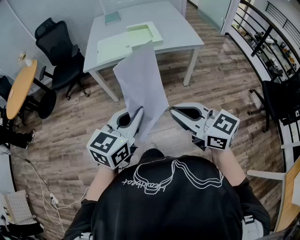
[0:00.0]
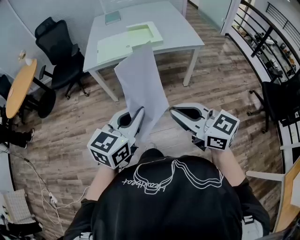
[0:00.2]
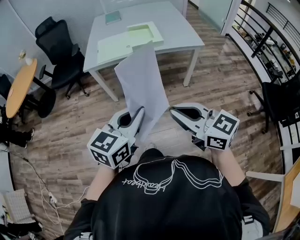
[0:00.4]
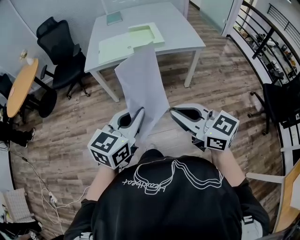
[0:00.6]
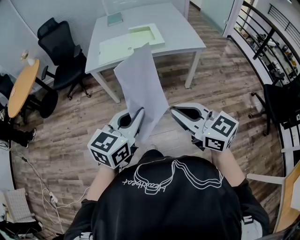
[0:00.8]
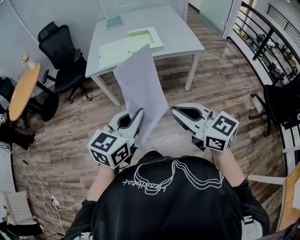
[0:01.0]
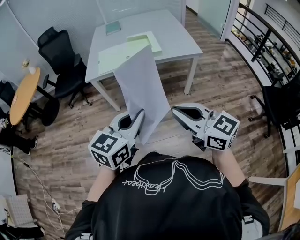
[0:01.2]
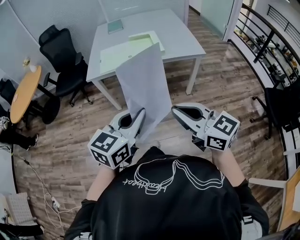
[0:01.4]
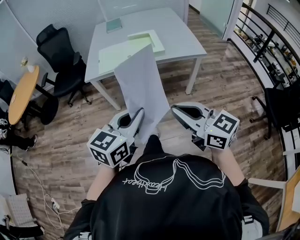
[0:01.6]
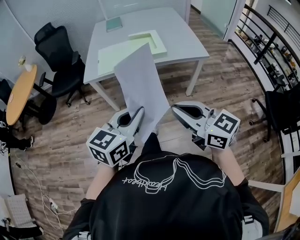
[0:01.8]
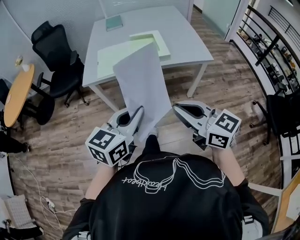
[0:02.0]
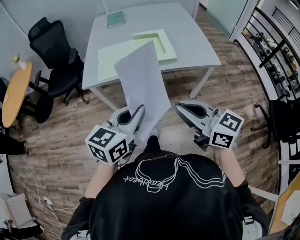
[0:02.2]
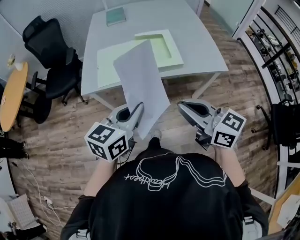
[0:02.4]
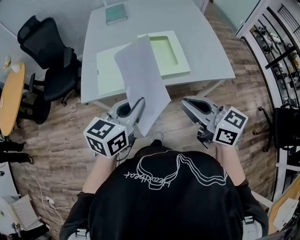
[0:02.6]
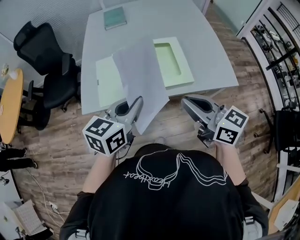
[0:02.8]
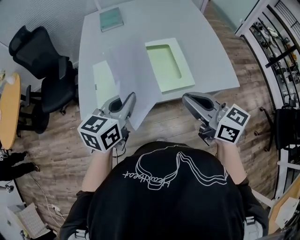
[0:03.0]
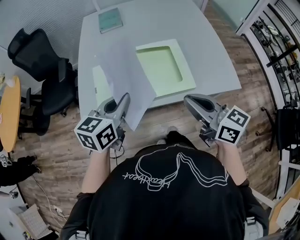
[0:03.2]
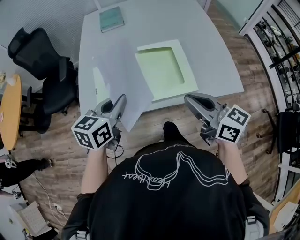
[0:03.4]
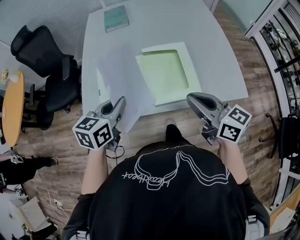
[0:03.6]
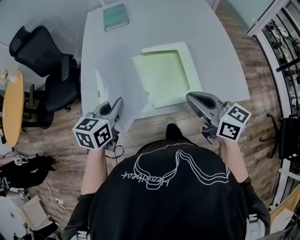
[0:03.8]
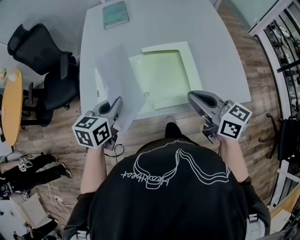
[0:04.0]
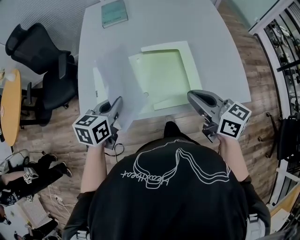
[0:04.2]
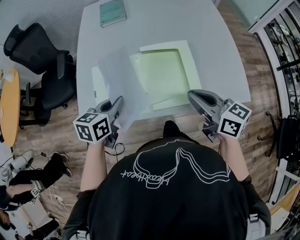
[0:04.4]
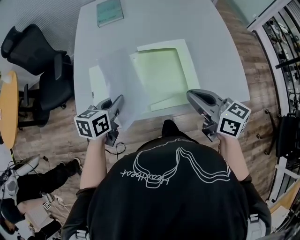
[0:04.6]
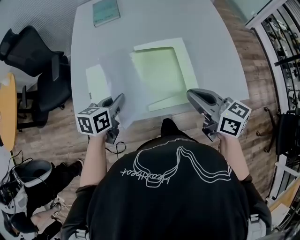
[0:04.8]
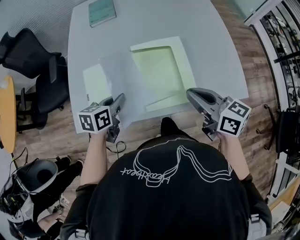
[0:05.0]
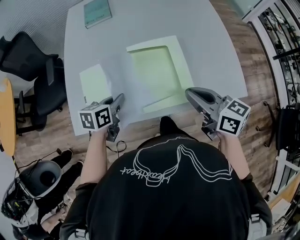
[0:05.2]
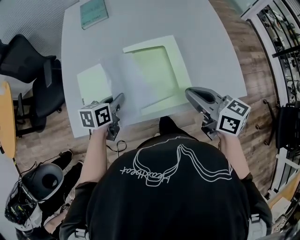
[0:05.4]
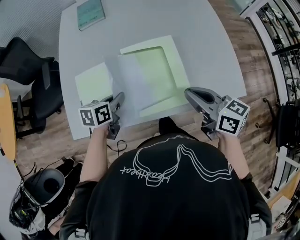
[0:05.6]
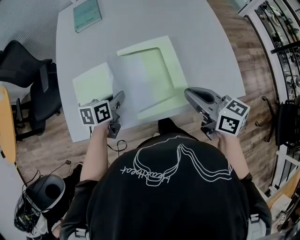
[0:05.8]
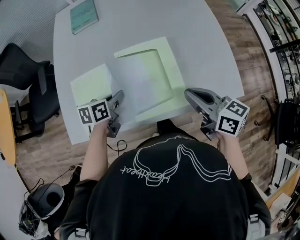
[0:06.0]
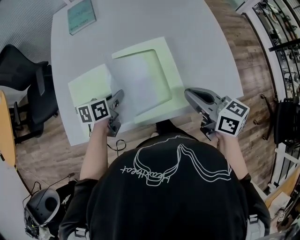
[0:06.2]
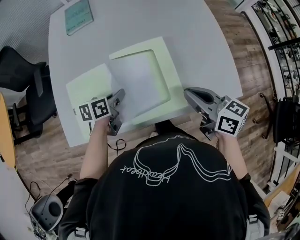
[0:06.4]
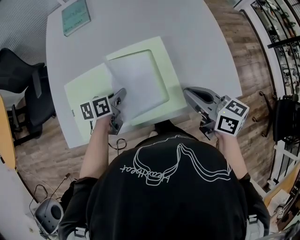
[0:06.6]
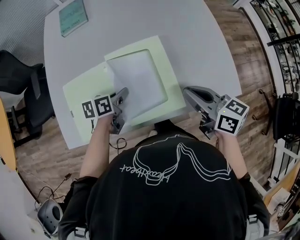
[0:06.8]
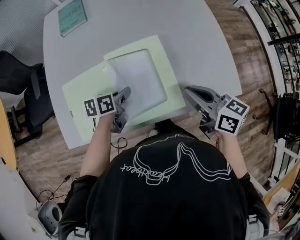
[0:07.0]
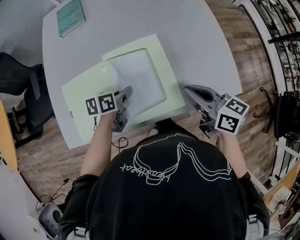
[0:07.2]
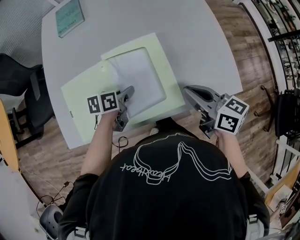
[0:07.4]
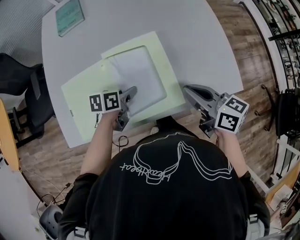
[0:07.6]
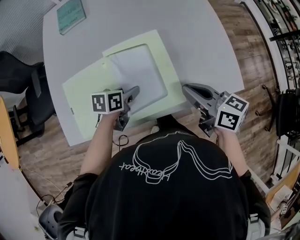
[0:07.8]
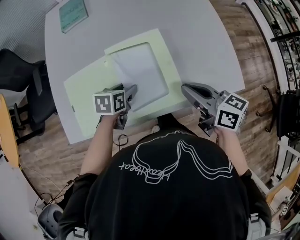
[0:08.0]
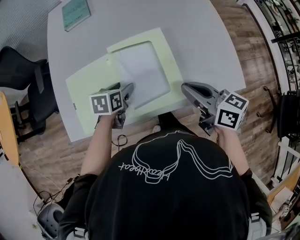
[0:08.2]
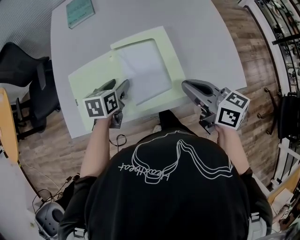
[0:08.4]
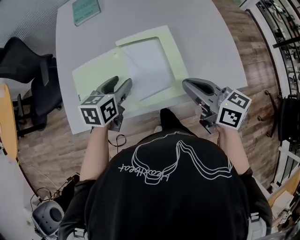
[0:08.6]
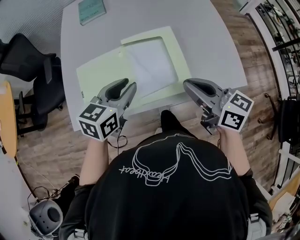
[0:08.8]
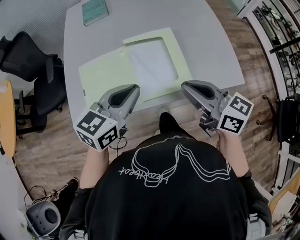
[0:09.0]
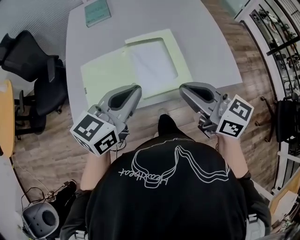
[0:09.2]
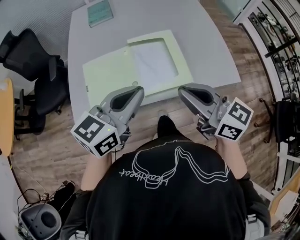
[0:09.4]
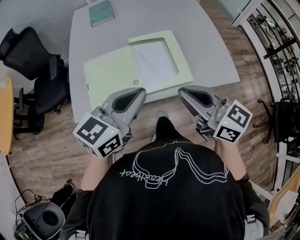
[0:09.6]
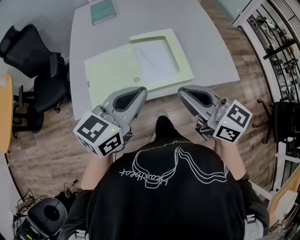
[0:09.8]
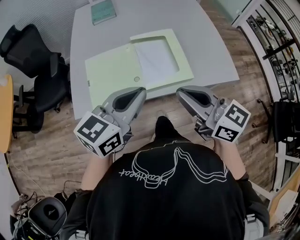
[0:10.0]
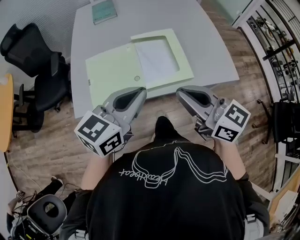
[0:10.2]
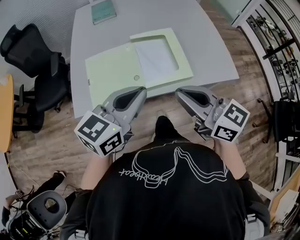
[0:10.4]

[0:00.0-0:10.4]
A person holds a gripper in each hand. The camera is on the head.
0:00.0 to 0:01.4: There are only small adjustments of the grippers.
0:01.4 to 0:03.0: Both grippers are carried forward, some 50 cm.
0:03.0 to 0:04.4: Both grippers travel together forward and downward, some 15 cm.
0:04.4 to 0:06.0: The right gripper shifts roughly 5 cm to the right, while the left gripper heads downward, forward and to the right, covering approximately 15 cm.
0:06.0 to 0:07.4: The left gripper shifts approximately 5 cm to the right.
0:07.4 to 0:09.0: The right gripper moves upward, backward and to the left, about 15 cm, while the left gripper moves upward and backward, approximately 25 cm, turns by approximately 50 degrees, and opens and closes again.
0:09.0 to 0:10.4: The right gripper shifts roughly 10 cm backward and to the left. Meanwhile the left gripper heads backward, covering approximately 10 cm.

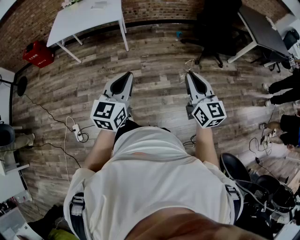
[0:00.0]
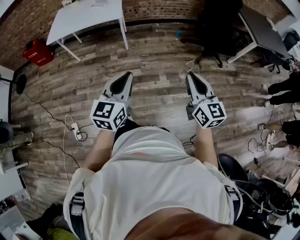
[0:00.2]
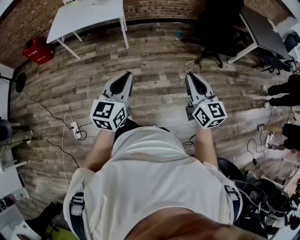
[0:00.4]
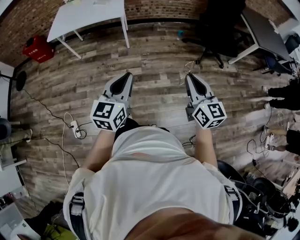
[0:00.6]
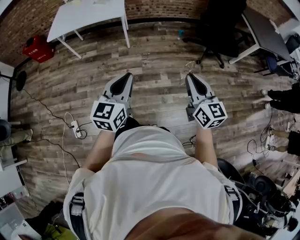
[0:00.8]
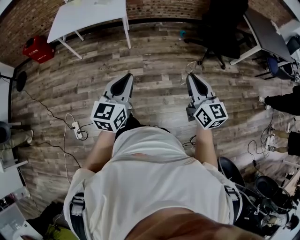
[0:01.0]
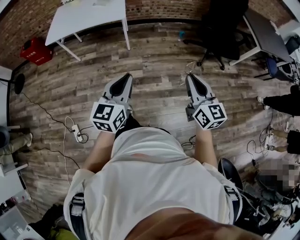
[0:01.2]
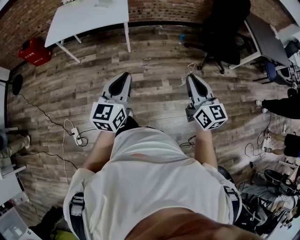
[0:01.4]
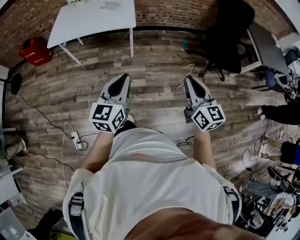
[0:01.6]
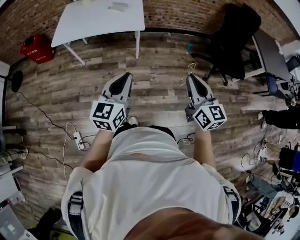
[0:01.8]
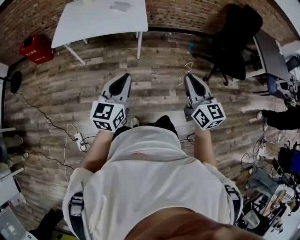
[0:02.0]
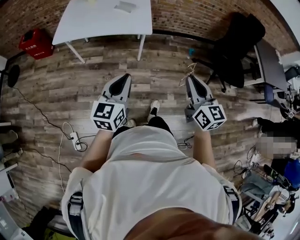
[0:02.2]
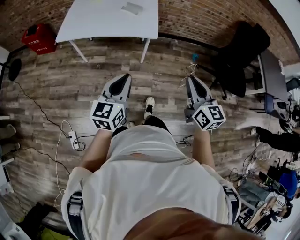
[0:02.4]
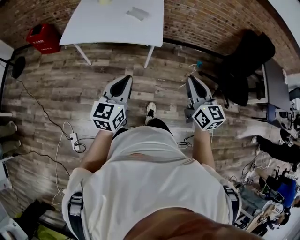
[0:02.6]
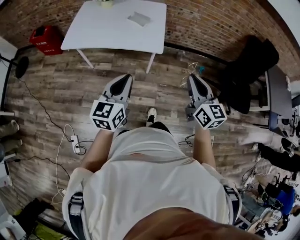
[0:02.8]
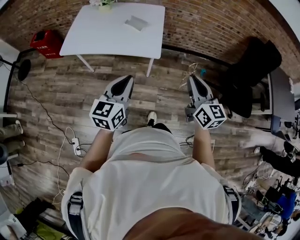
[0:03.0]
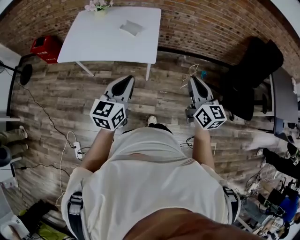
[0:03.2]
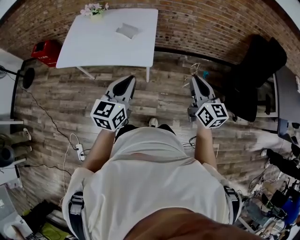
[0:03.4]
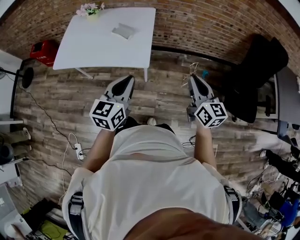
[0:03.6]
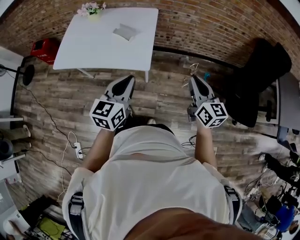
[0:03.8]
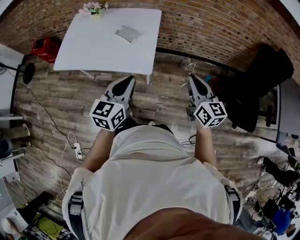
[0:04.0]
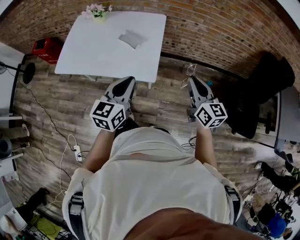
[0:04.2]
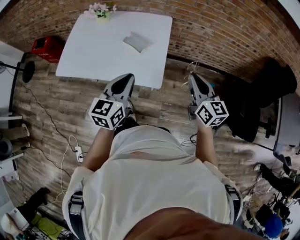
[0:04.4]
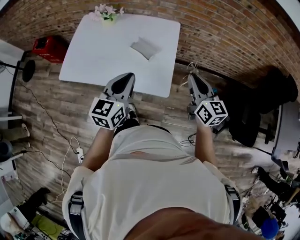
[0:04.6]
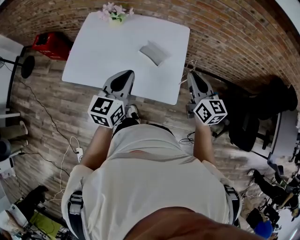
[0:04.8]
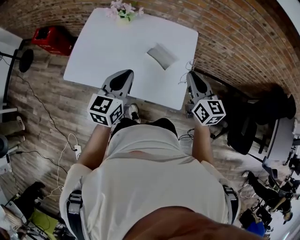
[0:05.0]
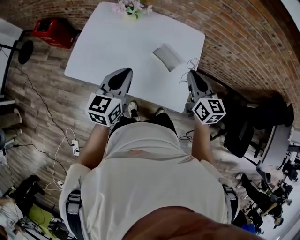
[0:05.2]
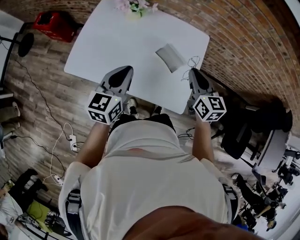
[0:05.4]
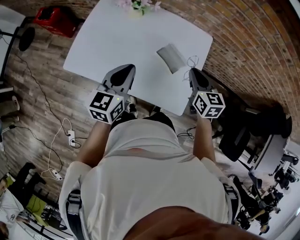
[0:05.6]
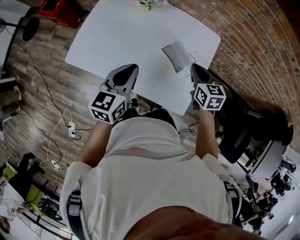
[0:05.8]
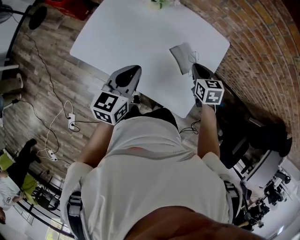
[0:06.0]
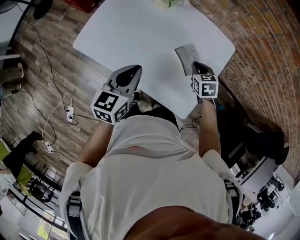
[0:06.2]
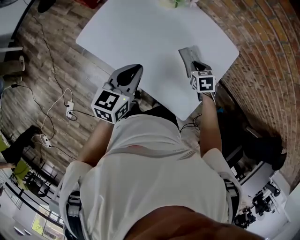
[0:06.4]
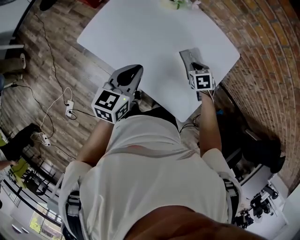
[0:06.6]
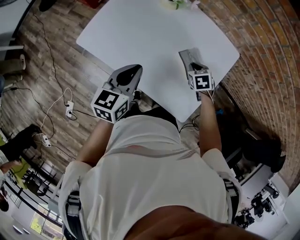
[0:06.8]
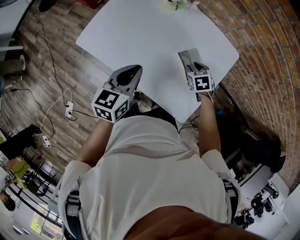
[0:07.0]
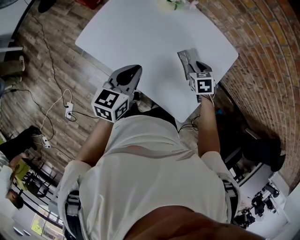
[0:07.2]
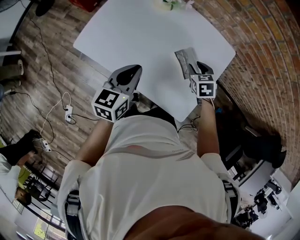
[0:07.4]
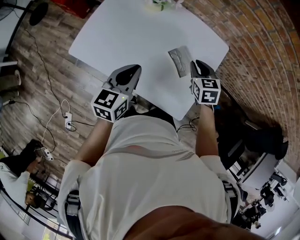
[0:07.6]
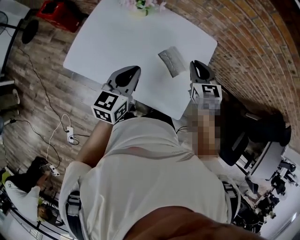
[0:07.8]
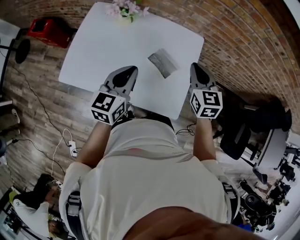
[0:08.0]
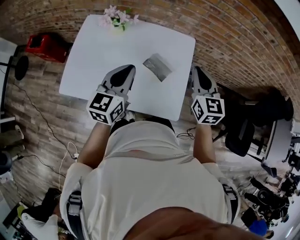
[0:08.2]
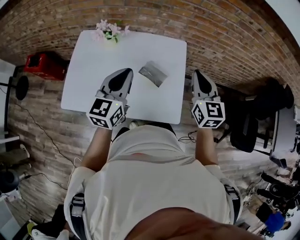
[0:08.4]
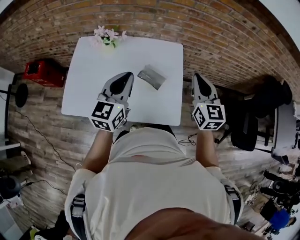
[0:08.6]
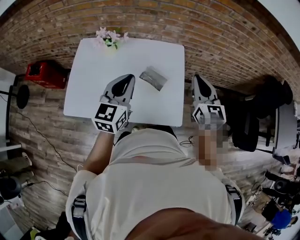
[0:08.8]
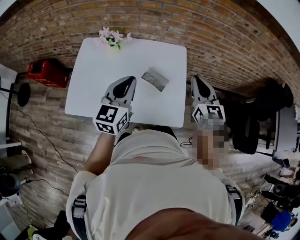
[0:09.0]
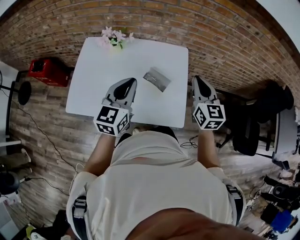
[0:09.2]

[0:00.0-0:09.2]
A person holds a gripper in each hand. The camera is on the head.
0:00.0 to 0:01.6: The two grippers go approximately 20 cm forward and to the left.
0:01.6 to 0:03.0: The two grippers go some 30 cm forward.
0:03.0 to 0:04.6: The grippers both shift forward by some 30 cm.
0:04.6 to 0:06.2: The right gripper moves forward, downward and to the left, about 40 cm, and points its fingers some 40 degrees further downward; the left gripper moves to the left, forward and downward, roughly 25 cm, and turns by roughly 20 degrees.
0:06.2 to 0:07.6: The right gripper shifts about 5 cm upward.
0:07.6 to 0:09.2: The left gripper heads upward and to the right, covering approximately 10 cm, and turns by about 30 degrees. Meanwhile the right gripper shifts some 25 cm upward, to the right and backward, and points its fingers about 30 degrees further upward.

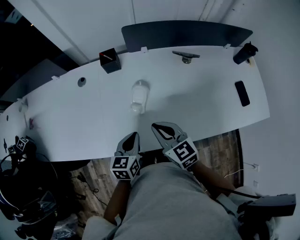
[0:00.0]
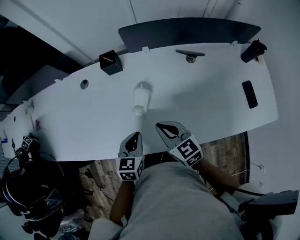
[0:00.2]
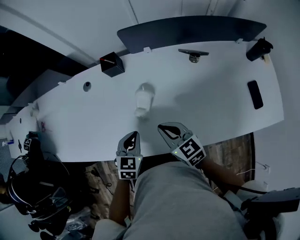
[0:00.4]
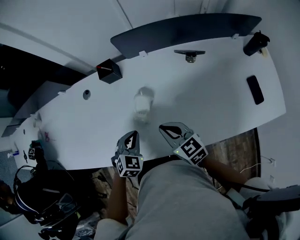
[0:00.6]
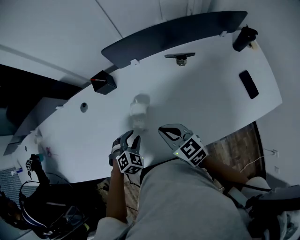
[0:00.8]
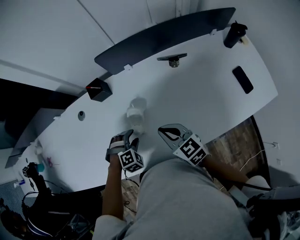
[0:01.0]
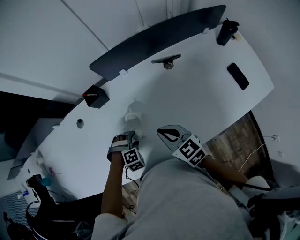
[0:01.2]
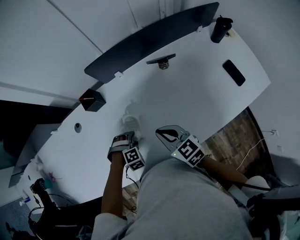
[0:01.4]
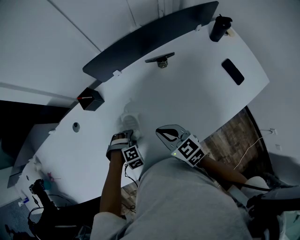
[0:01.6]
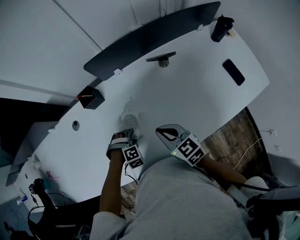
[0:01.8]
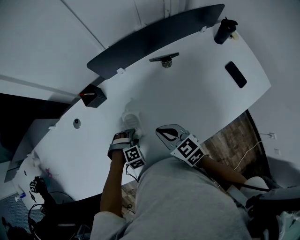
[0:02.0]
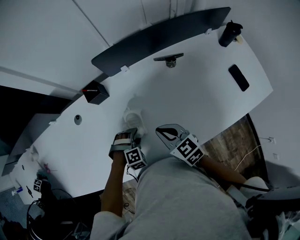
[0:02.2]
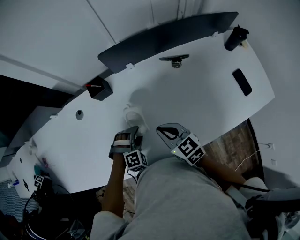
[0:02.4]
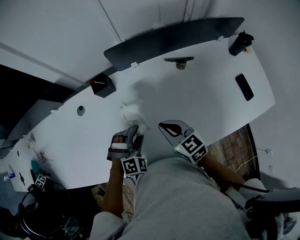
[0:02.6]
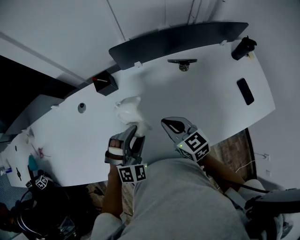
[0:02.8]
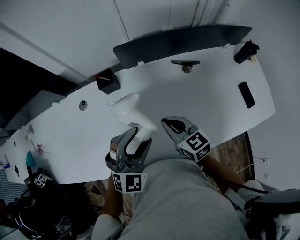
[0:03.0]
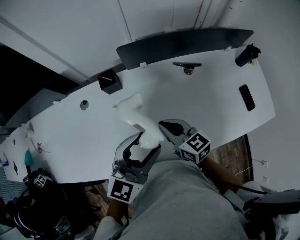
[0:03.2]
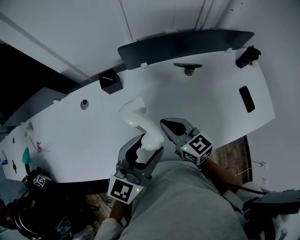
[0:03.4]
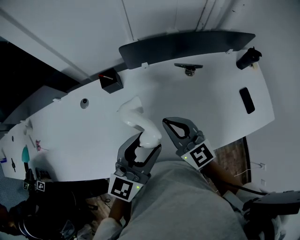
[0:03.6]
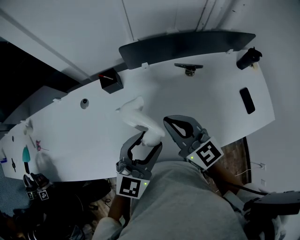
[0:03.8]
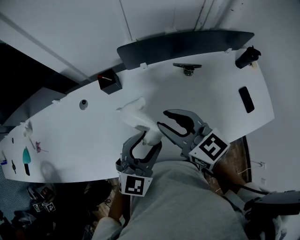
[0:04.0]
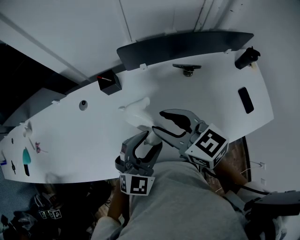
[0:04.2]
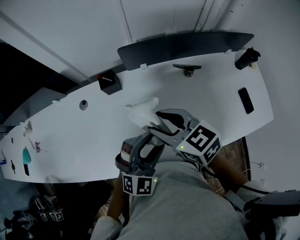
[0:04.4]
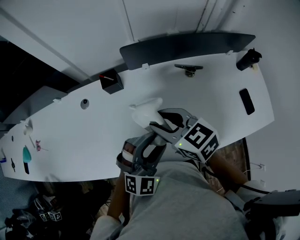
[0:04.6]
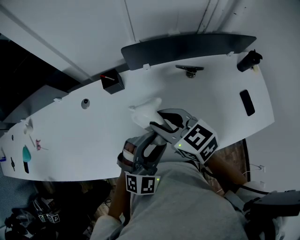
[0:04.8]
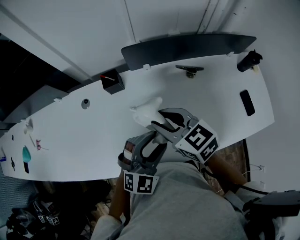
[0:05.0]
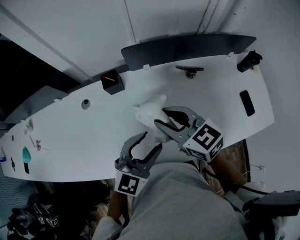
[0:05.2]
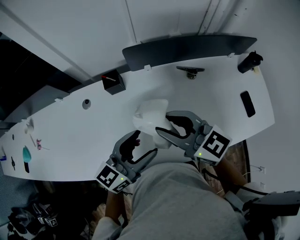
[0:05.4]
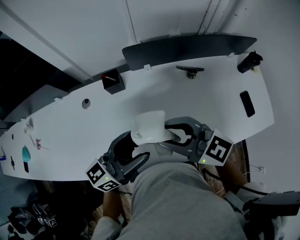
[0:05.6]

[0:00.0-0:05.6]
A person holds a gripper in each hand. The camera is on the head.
0:00.0 to 0:01.4: The right gripper heads to the right and forward, covering approximately 10 cm. Meanwhile the left gripper moves downward and forward, about 15 cm, rolls clockwise, seen from behind, by some 90 degrees, and opens.
0:01.4 to 0:02.8: The left gripper moves upward, approximately 20 cm, and points its fingers roughly 40 degrees further upward.
0:02.8 to 0:04.2: The right gripper travels upward by approximately 15 cm, and opens up; the left gripper goes some 10 cm upward, and rotates about 30 degrees.
0:04.2 to 0:05.6: The left gripper heads upward and to the left, covering some 10 cm, and twists some 50 degrees counterclockwise, seen from behind; the right gripper shifts by some 5 cm, and turns by approximately 30 degrees.
